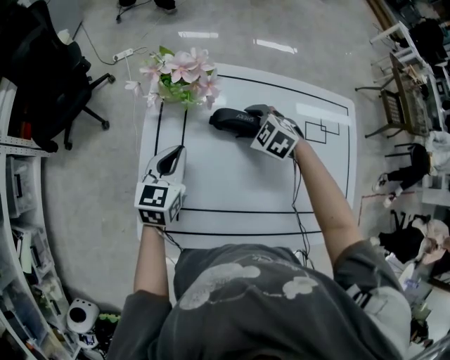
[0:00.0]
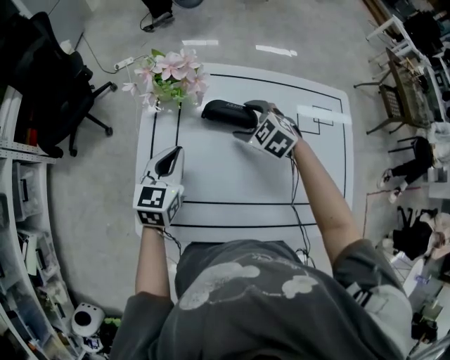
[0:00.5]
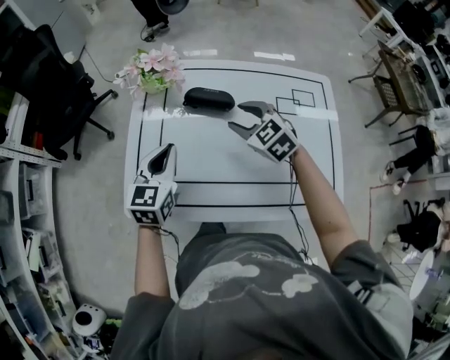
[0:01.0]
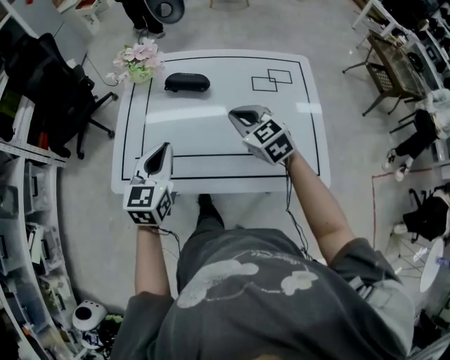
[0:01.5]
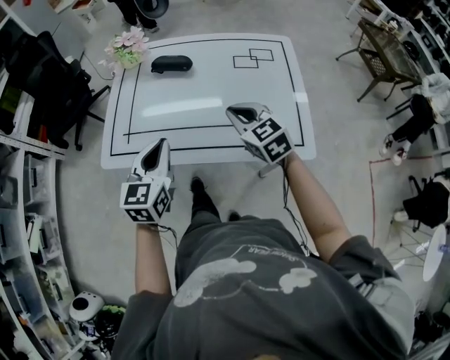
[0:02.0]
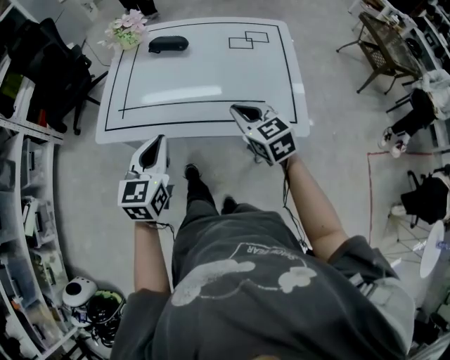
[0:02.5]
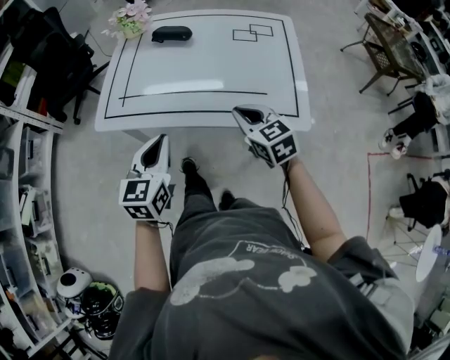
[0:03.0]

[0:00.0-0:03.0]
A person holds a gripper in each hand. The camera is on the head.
0:00.0 to 0:01.5: Both grippers travel together backward, upward and to the right, approximately 25 cm. The right gripper swivels roughly 40 degrees, and closes up.
0:01.5 to 0:03.0: The grippers both shift backward by about 20 cm.

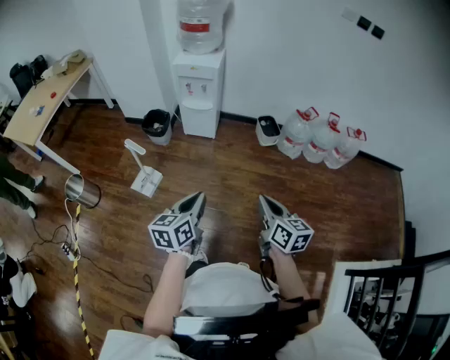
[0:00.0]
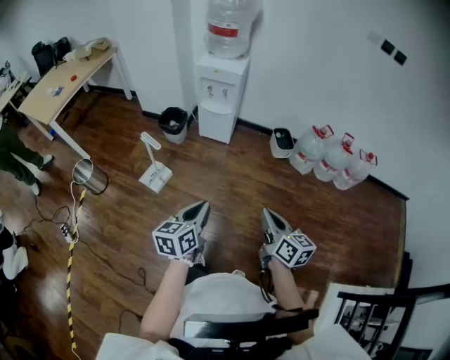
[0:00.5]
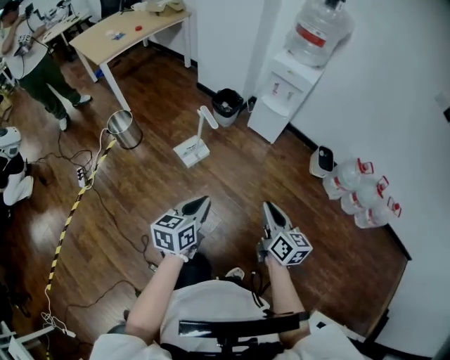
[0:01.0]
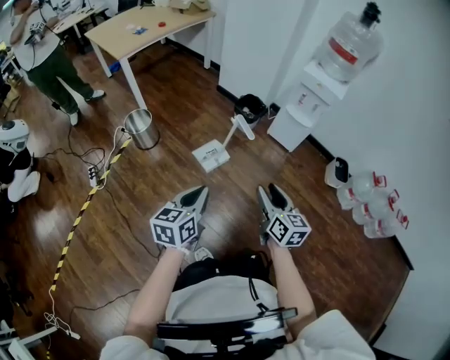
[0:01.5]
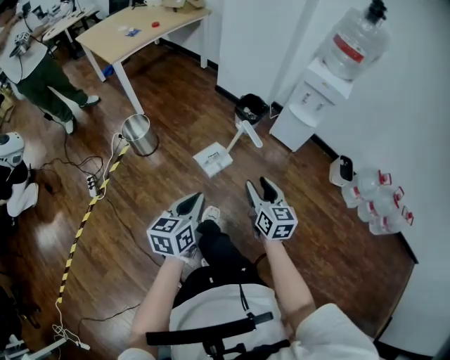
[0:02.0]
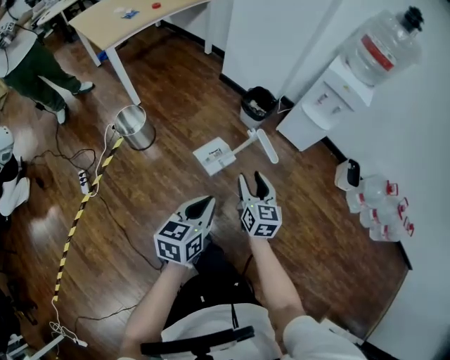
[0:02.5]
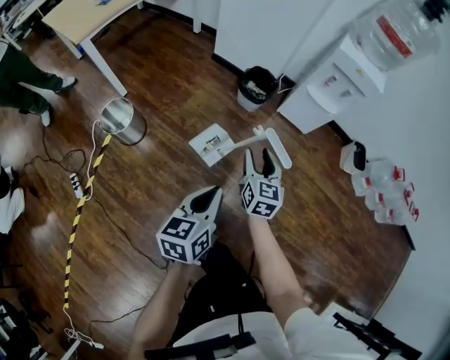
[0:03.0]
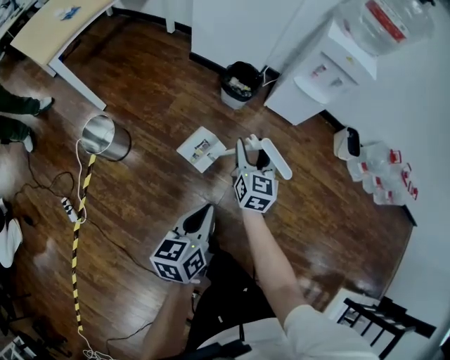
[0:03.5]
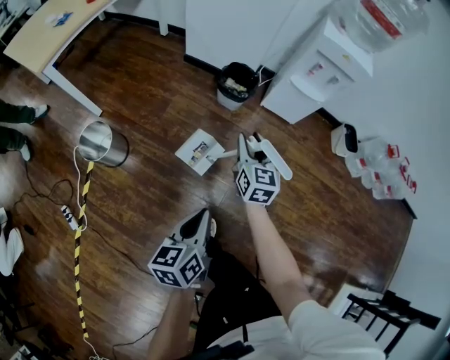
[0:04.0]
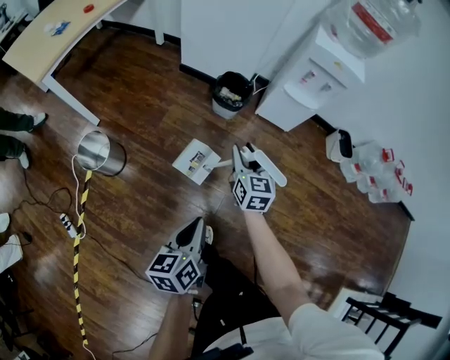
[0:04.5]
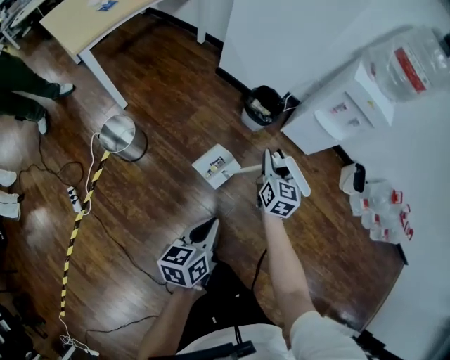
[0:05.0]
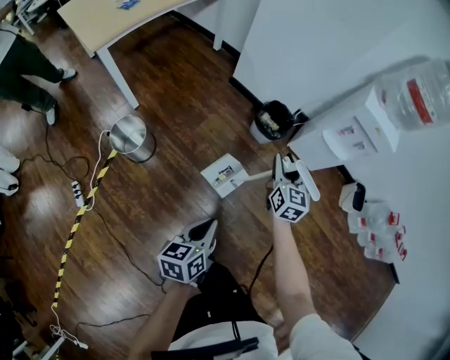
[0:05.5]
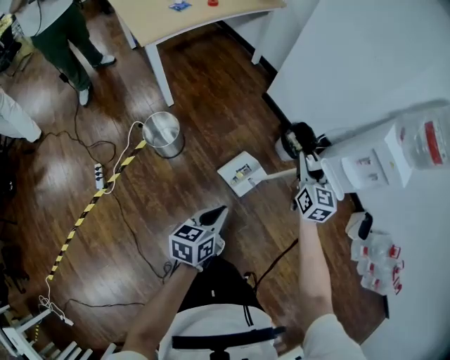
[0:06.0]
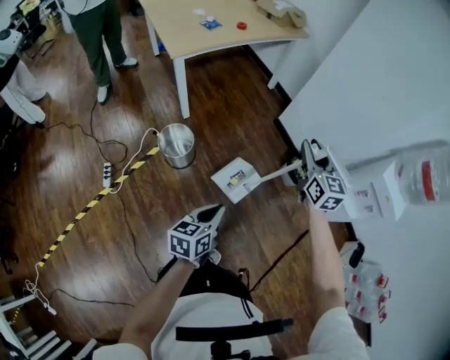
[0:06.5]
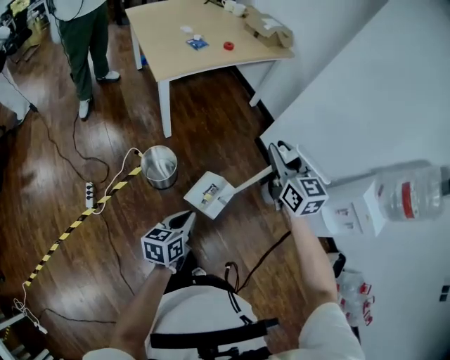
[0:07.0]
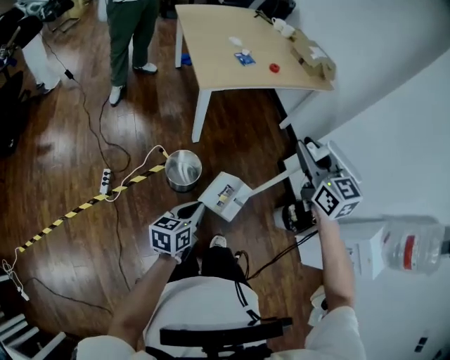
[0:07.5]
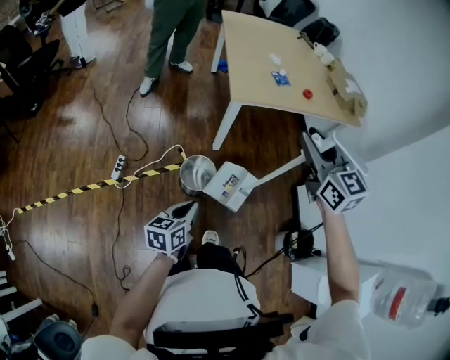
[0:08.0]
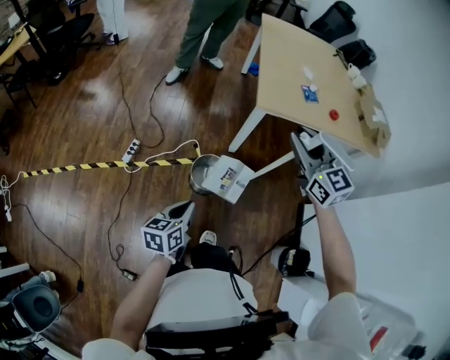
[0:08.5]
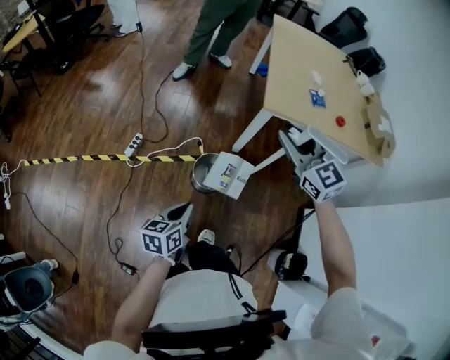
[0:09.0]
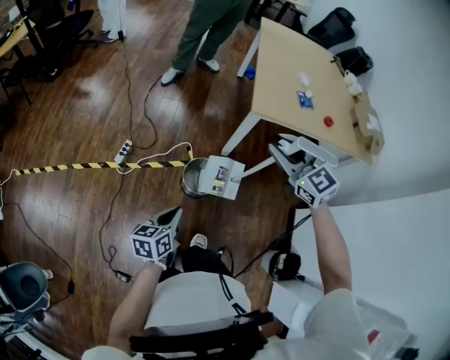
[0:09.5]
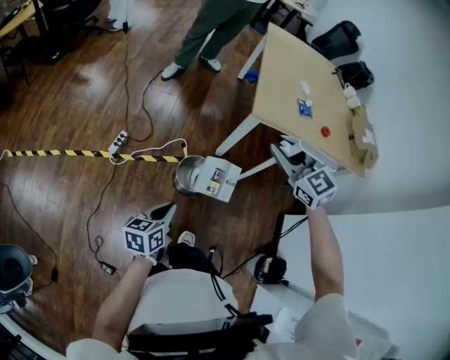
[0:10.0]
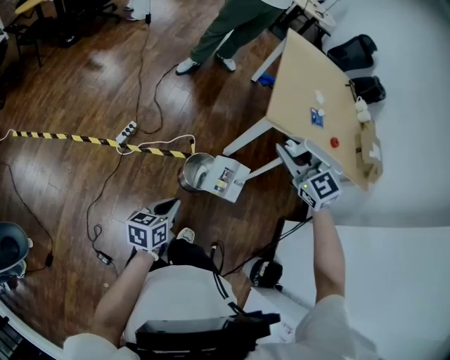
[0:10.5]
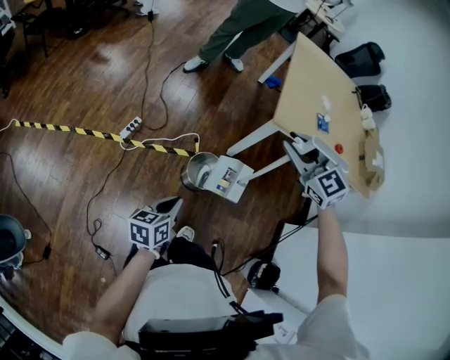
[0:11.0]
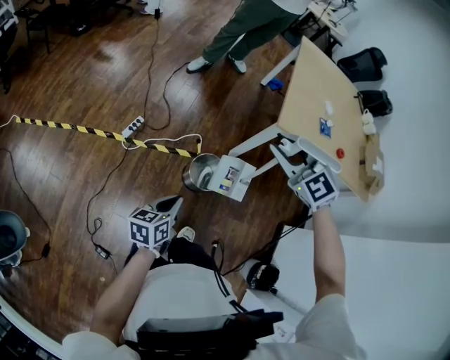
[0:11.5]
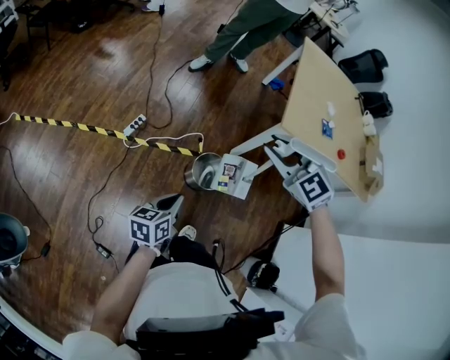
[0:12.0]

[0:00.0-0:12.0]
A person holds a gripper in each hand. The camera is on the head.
0:00.0 to 0:02.0: The right gripper heads to the left and forward, covering some 40 cm, rotates some 30 degrees, and opens its fingers; the left gripper heads to the left, covering approximately 40 cm, and changes its angle by roughly 30 degrees.
0:02.0 to 0:04.0: The left gripper shifts about 25 cm forward, downward and to the left; the right gripper travels forward and downward by about 35 cm, and rotates roughly 20 degrees.
0:04.0 to 0:06.0: The right gripper moves upward, to the left and forward, roughly 20 cm, and turns by some 20 degrees. The left gripper heads to the left and forward, covering some 15 cm.
0:06.0 to 0:08.0: The right gripper shifts by about 50 cm, and rotates roughly 60 degrees. Meanwhile the left gripper changes place by approximately 35 cm, and turns by roughly 40 degrees.
0:08.0 to 0:10.0: The right gripper heads to the left, downward and forward, covering roughly 15 cm, and turns by approximately 40 degrees, while the left gripper ends up some 5 cm from where it was.
0:10.0 to 0:12.0: The left gripper heads to the left, covering approximately 5 cm; the right gripper goes about 15 cm to the left, and rotates about 20 degrees.

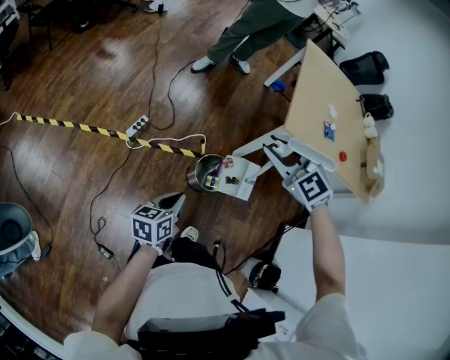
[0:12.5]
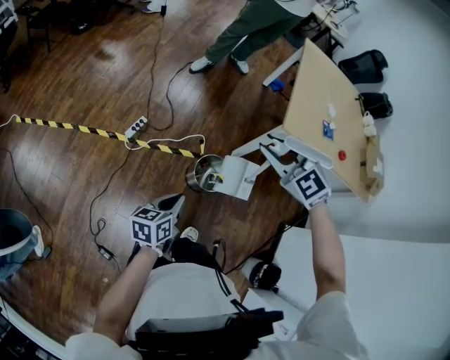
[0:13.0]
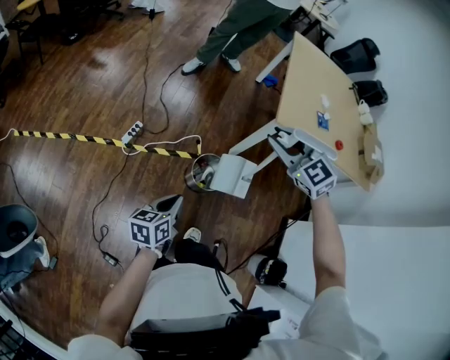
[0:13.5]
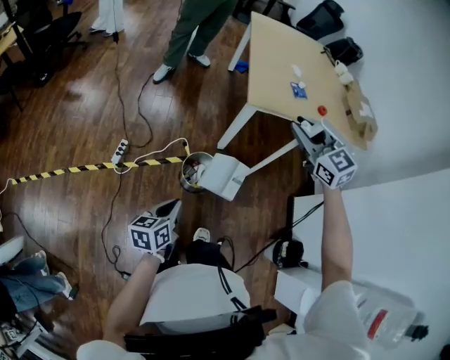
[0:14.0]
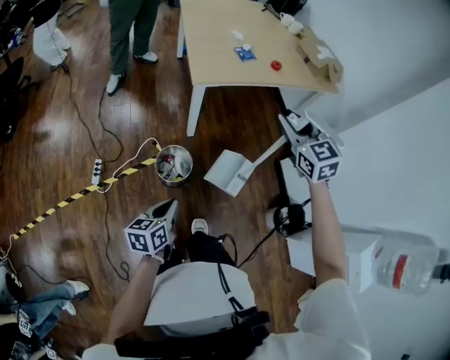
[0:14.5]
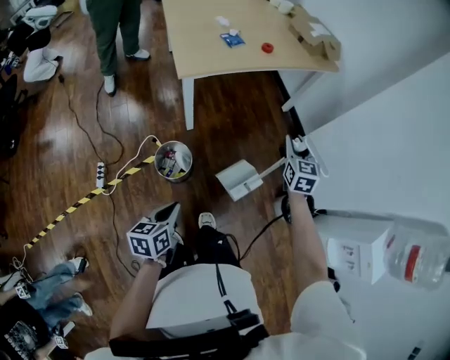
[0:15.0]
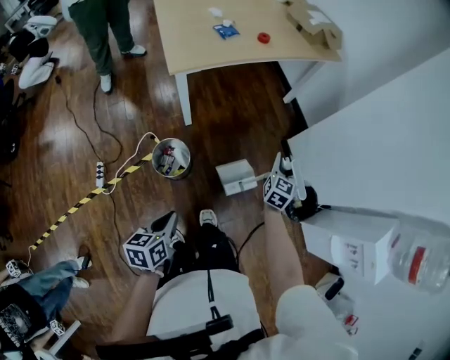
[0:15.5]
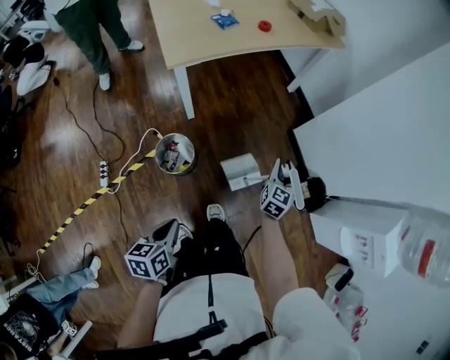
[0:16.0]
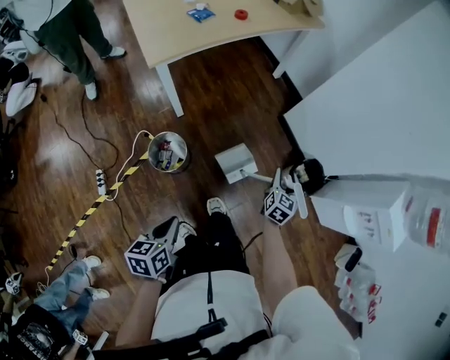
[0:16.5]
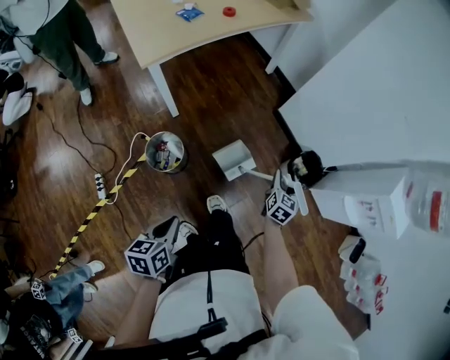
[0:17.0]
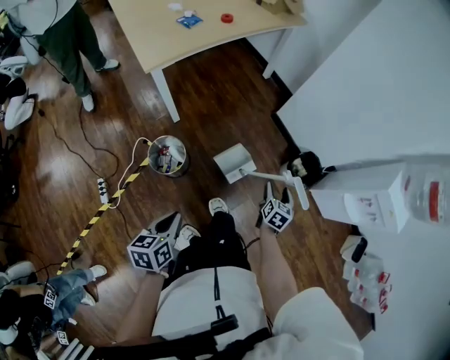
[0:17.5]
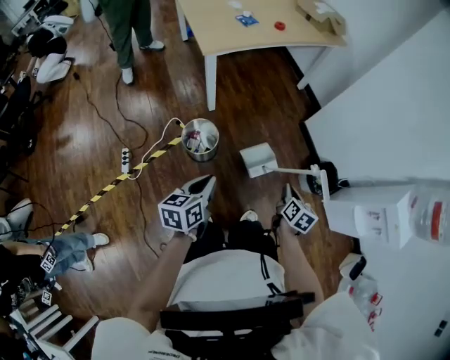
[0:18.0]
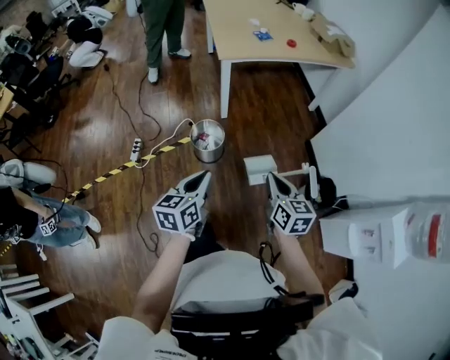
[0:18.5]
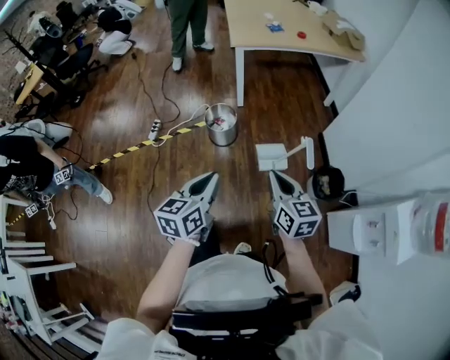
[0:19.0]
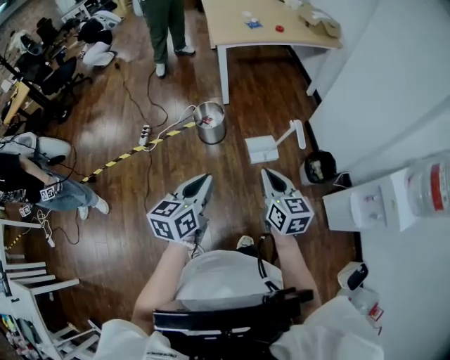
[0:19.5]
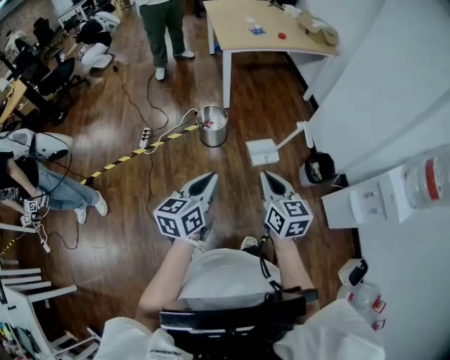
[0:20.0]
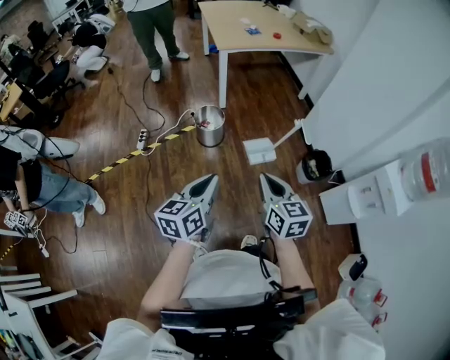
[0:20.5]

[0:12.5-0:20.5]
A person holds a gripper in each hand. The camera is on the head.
0:12.5 to 0:14.5: The left gripper shifts by approximately 15 cm, and rotates some 30 degrees. Meanwhile the right gripper shifts by some 35 cm, and turns by about 60 degrees.
0:14.5 to 0:16.5: The left gripper changes place by about 10 cm, while the right gripper is displaced downward by roughly 35 cm, turns by some 70 degrees, and opens its fingers.
0:16.5 to 0:18.5: The right gripper shifts by roughly 35 cm, swivels some 50 degrees, and closes its fingers. Meanwhile the left gripper travels upward by some 10 cm, and rotates roughly 30 degrees.
0:18.5 to 0:20.5: The two grippers go about 25 cm backward.

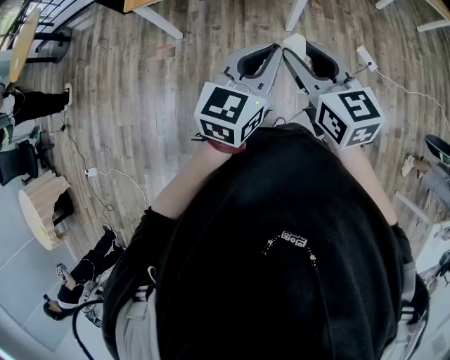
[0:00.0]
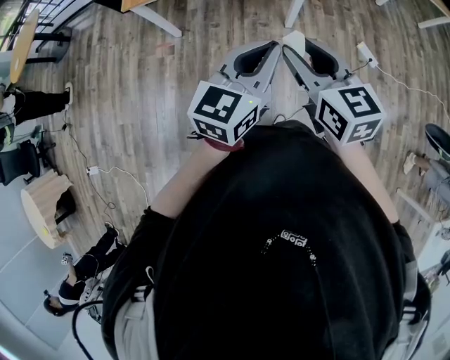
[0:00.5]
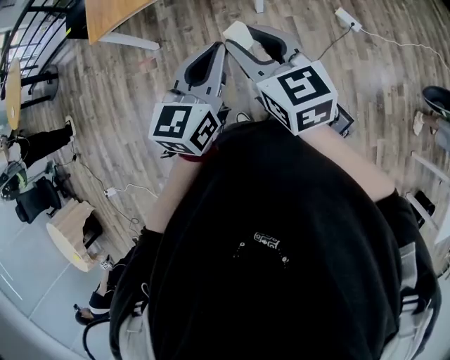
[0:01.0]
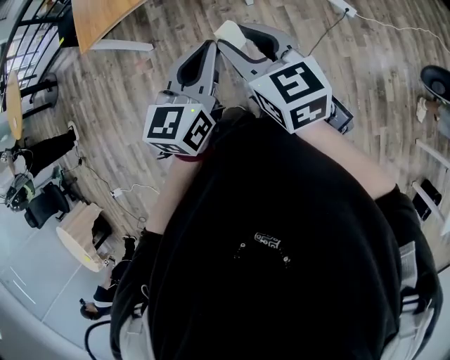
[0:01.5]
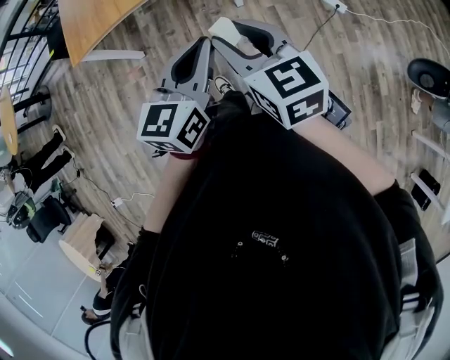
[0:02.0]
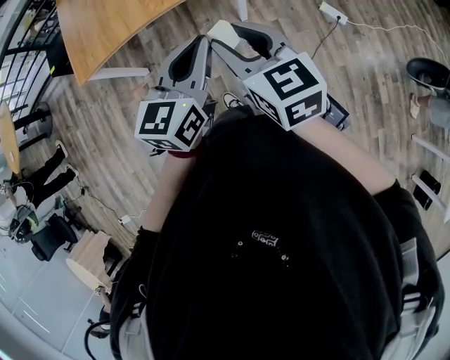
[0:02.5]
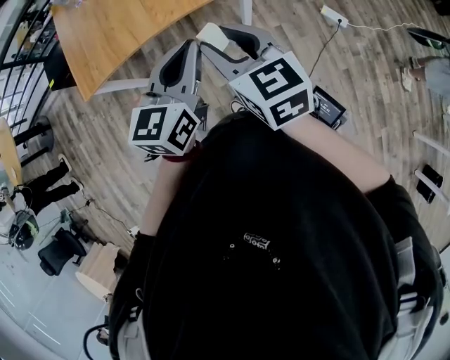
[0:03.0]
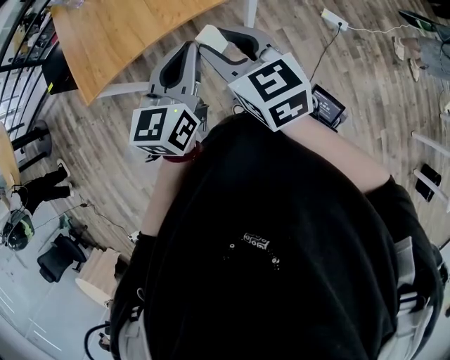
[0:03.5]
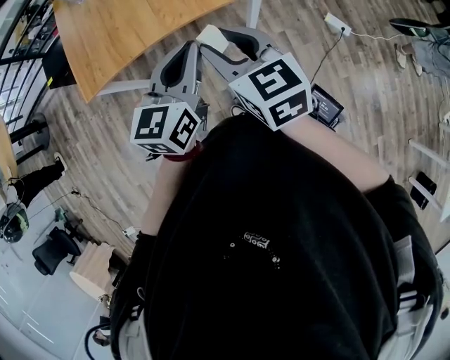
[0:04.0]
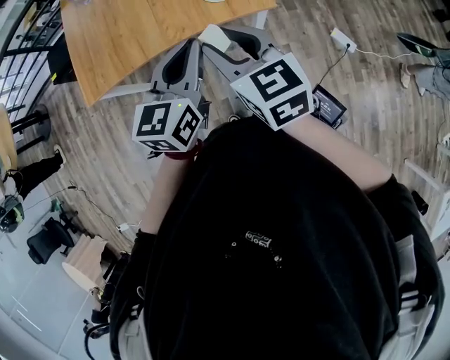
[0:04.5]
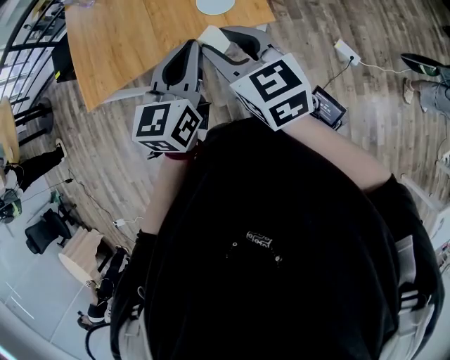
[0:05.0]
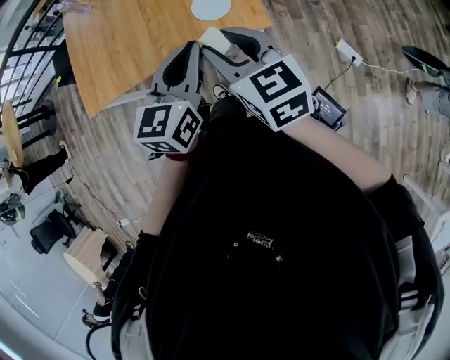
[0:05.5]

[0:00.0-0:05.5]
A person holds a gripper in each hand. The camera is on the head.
0:00.0 to 0:02.0: Both grippers travel together to the right, roughly 10 cm.
0:02.0 to 0:03.5: Both grippers travel together forward and to the left, roughly 25 cm.
0:03.5 to 0:05.5: Both grippers travel together forward and to the right, some 20 cm.
